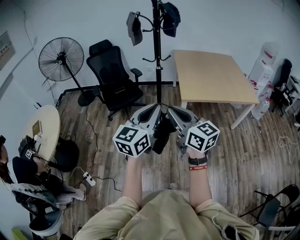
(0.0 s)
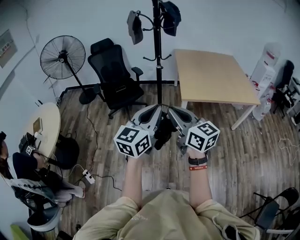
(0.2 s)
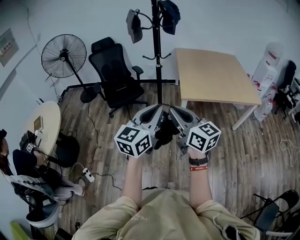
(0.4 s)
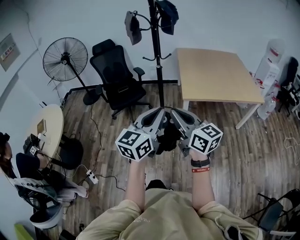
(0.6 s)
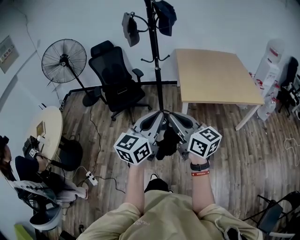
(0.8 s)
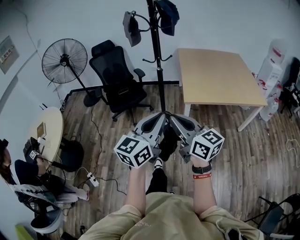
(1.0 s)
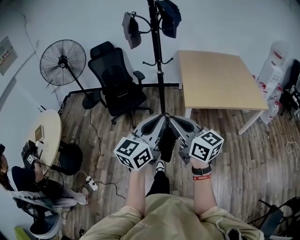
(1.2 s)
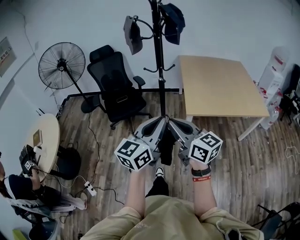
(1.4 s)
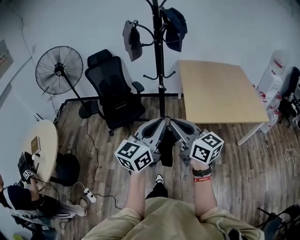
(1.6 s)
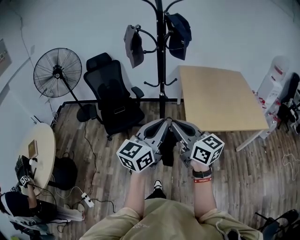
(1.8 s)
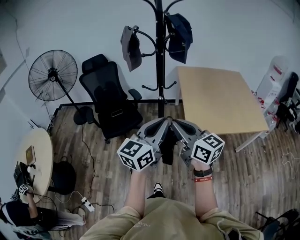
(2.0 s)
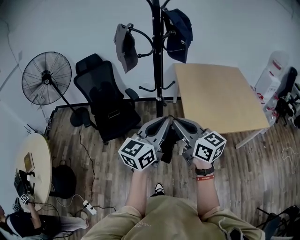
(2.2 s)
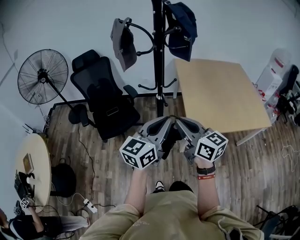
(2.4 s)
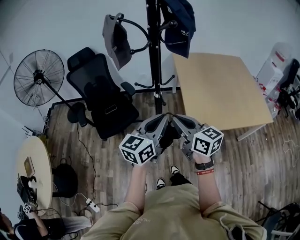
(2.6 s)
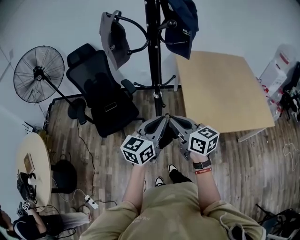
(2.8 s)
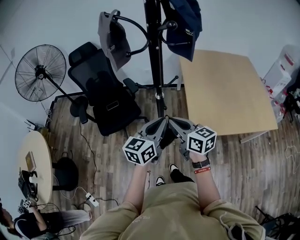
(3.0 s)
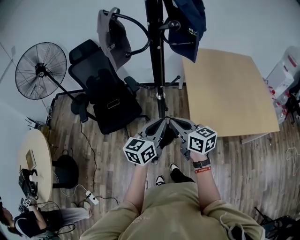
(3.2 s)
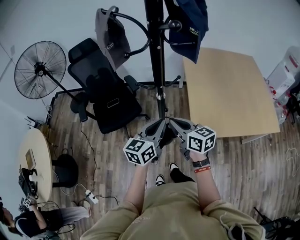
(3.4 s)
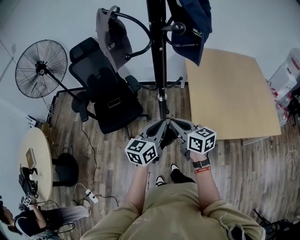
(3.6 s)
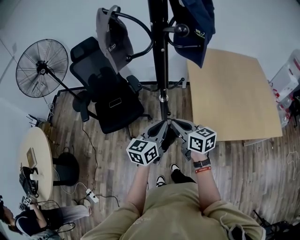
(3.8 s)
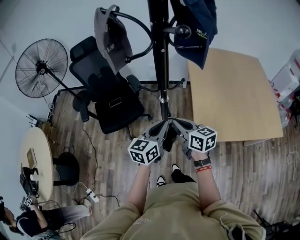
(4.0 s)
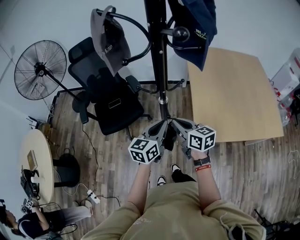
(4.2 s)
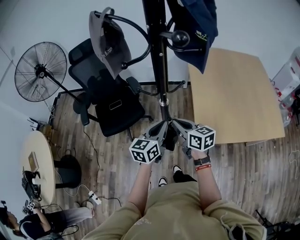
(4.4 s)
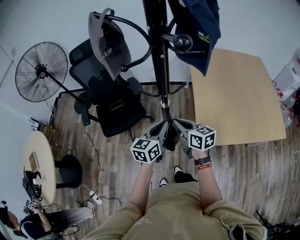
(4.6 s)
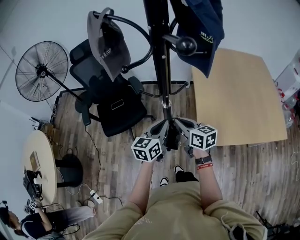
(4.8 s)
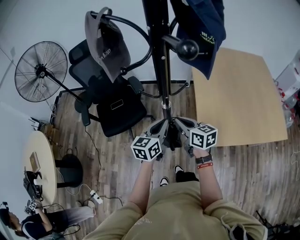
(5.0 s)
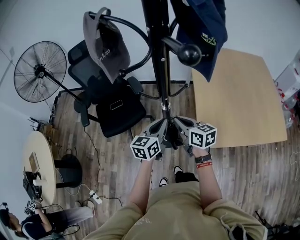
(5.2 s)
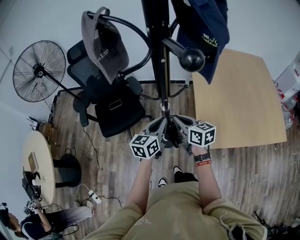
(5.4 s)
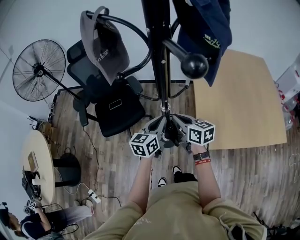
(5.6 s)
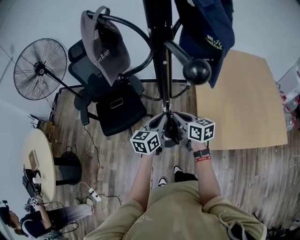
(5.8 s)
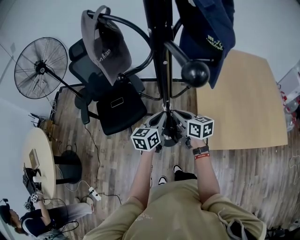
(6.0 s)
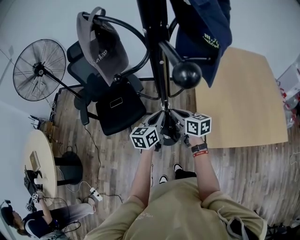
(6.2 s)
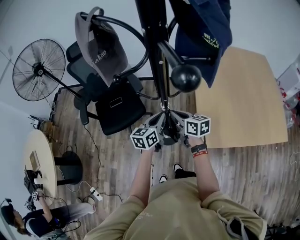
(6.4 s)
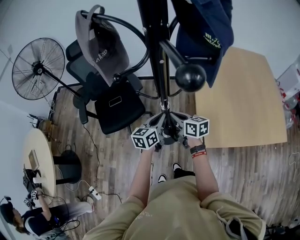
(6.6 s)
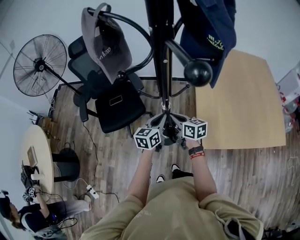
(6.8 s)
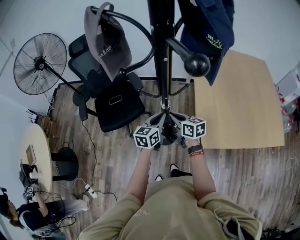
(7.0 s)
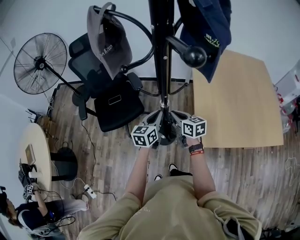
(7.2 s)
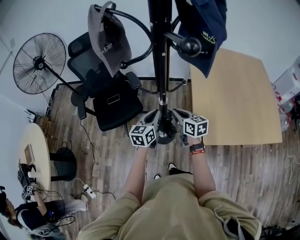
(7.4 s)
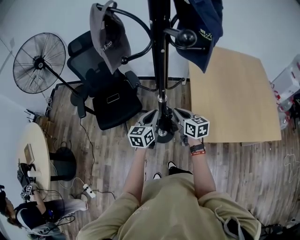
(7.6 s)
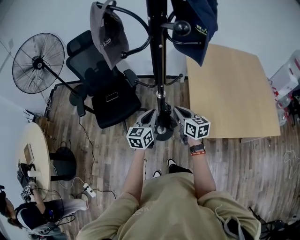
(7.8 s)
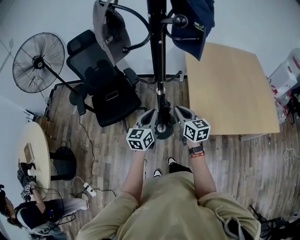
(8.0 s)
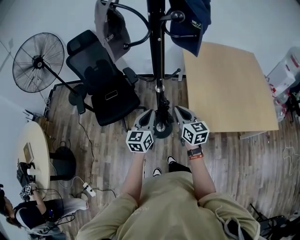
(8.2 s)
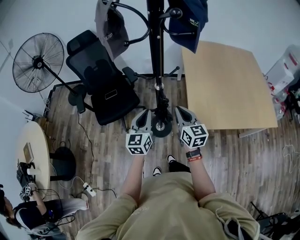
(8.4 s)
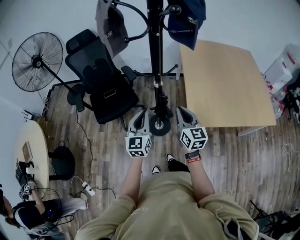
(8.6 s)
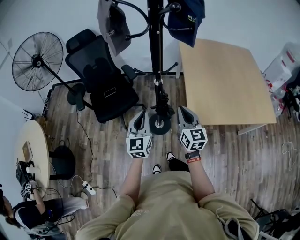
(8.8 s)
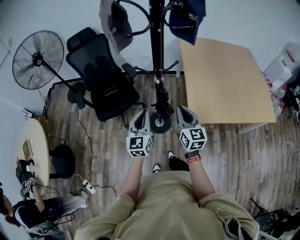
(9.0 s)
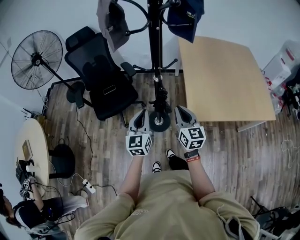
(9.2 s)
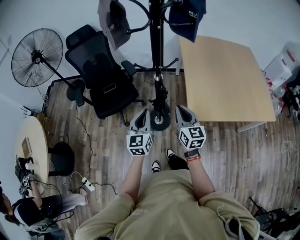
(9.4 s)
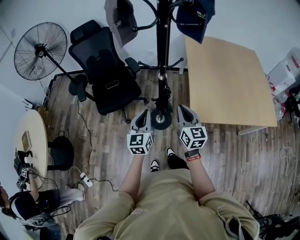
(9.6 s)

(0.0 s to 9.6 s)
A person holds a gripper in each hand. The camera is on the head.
0.0 s - 1.6 s: The two grippers go some 20 cm forward.
1.6 s - 3.2 s: Both grippers travel together forward, roughly 35 cm.
3.2 s - 4.8 s: Both grippers move forward and downward, approximately 15 cm.
4.8 s - 6.4 s: The right gripper shifts about 10 cm forward; the left gripper goes some 10 cm forward and downward.
6.4 s - 8.0 s: Both grippers travel together backward, about 10 cm. The right gripper swivels approximately 20 degrees.
8.0 s - 9.6 s: Both grippers move backward, about 10 cm.

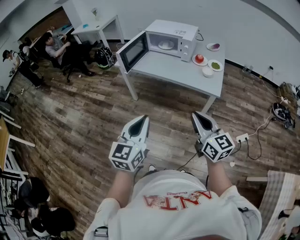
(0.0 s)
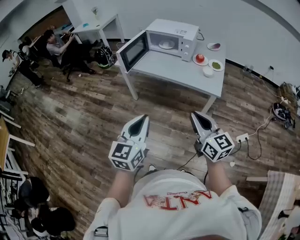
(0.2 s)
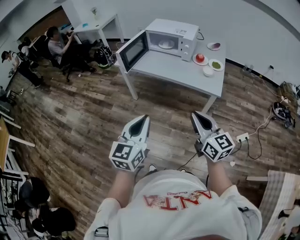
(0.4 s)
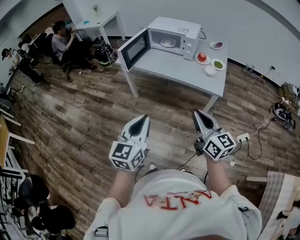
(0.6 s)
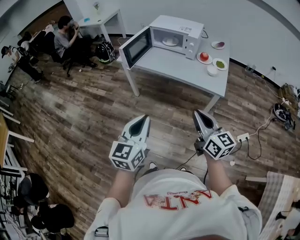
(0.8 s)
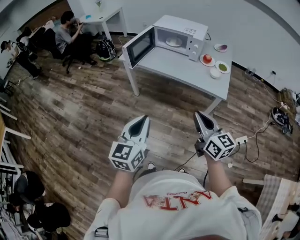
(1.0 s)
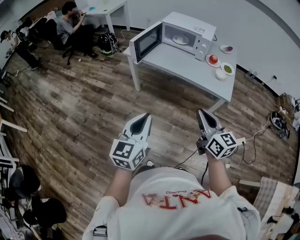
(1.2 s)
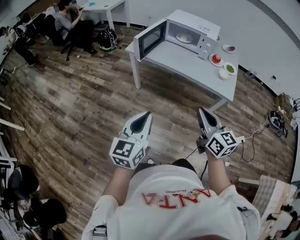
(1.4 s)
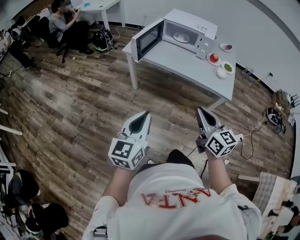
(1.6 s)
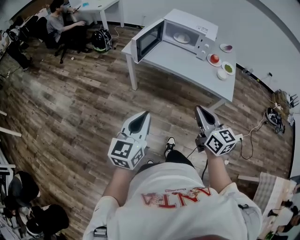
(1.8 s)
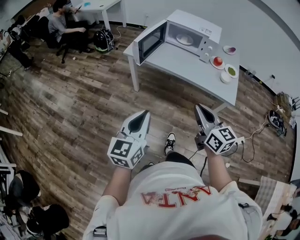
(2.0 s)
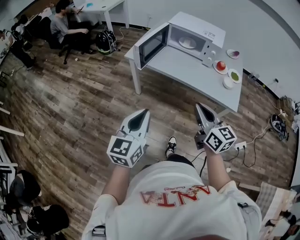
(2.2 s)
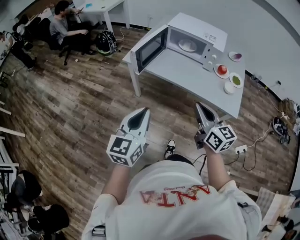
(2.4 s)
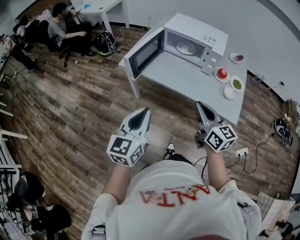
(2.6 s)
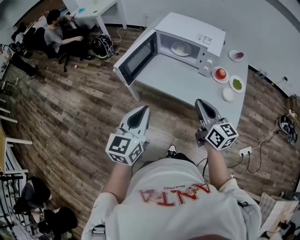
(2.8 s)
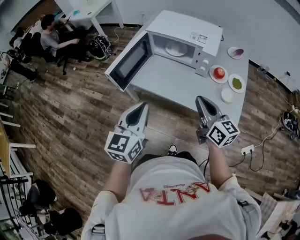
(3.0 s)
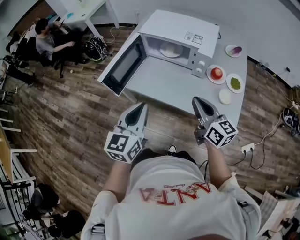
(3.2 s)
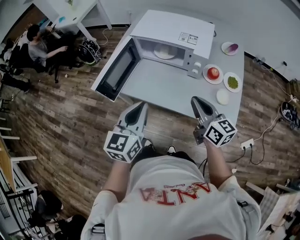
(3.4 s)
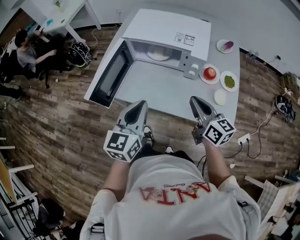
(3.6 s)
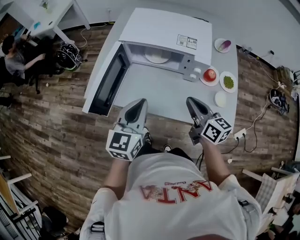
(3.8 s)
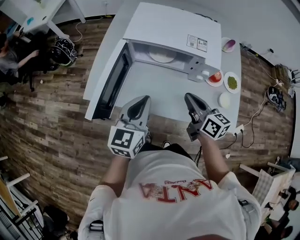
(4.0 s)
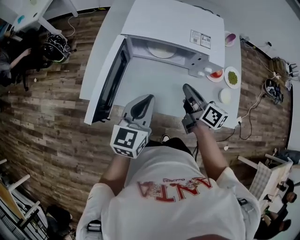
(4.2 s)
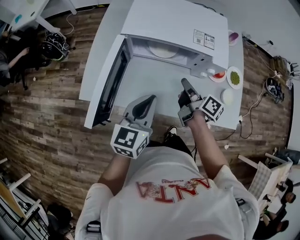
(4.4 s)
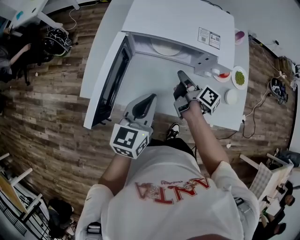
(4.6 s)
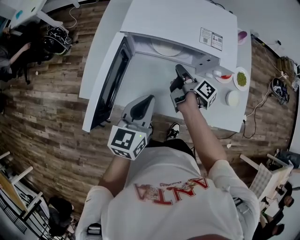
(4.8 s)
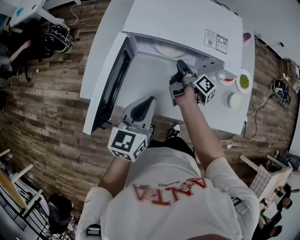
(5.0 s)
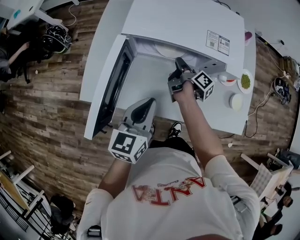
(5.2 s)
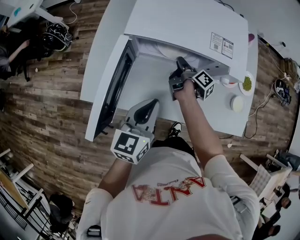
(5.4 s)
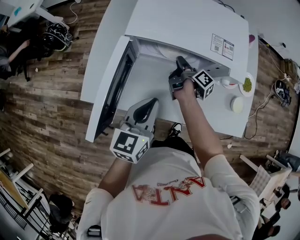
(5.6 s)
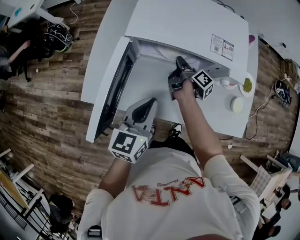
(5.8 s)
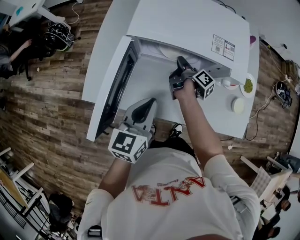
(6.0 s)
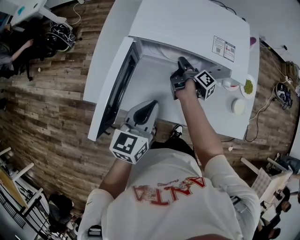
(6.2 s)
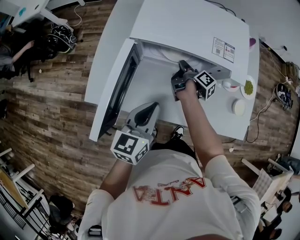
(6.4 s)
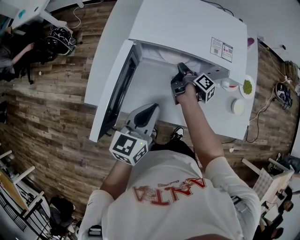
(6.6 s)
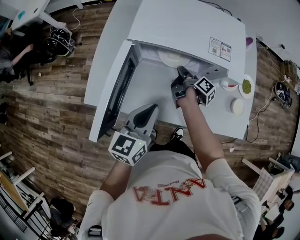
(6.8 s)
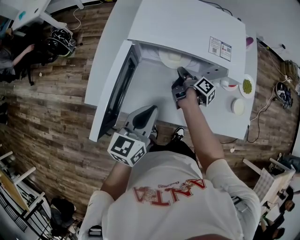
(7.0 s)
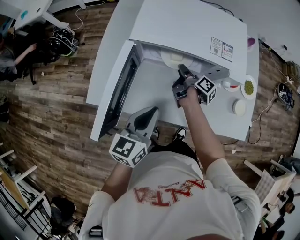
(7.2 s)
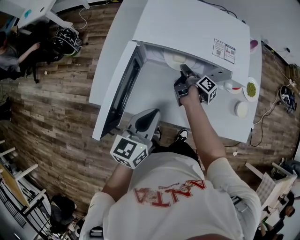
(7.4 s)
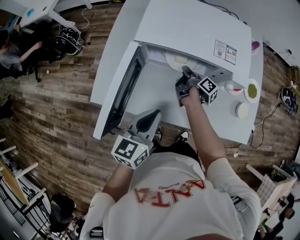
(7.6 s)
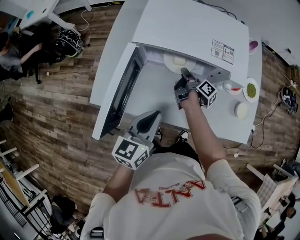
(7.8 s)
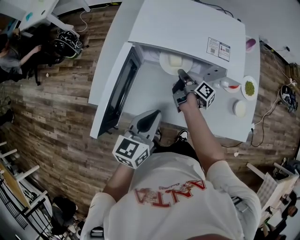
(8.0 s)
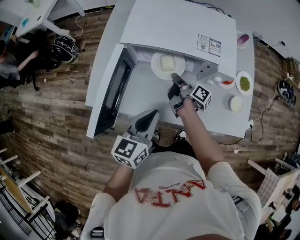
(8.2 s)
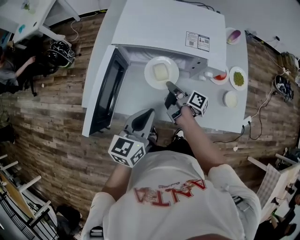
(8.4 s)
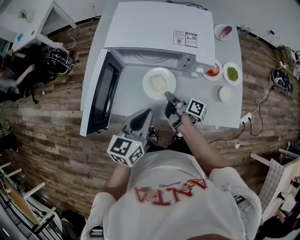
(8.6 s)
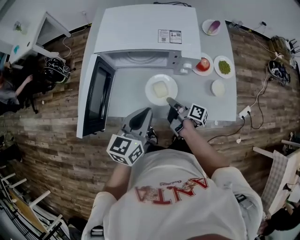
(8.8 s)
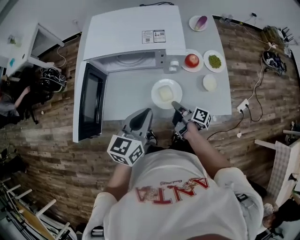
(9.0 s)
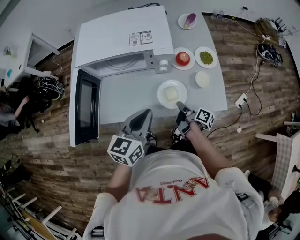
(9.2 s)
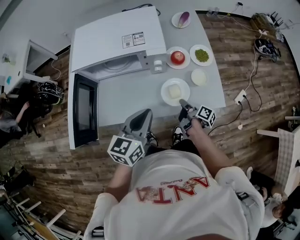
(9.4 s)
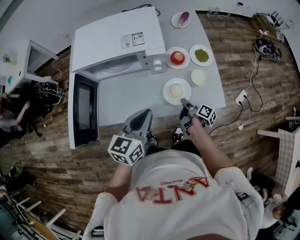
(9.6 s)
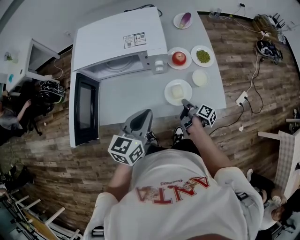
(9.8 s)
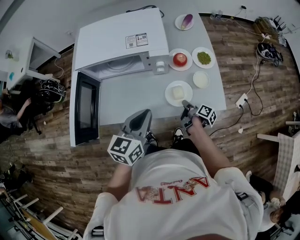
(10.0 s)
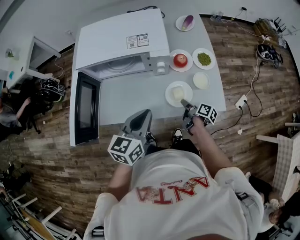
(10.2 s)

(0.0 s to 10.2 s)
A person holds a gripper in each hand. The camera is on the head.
0.0 s - 1.4 s: The left gripper goes about 10 cm to the left, while the right gripper travels to the left and forward by about 10 cm.
1.4 s - 3.0 s: Both grippers move forward, approximately 30 cm.
3.0 s - 4.4 s: Both grippers move forward and downward, approximately 25 cm. The left gripper turns by roughly 20 degrees, while the right gripper rotates around the line of its fingers by about 50 degrees, clockwise from behind.
4.4 s - 5.8 s: The left gripper shifts by roughly 5 cm. Meanwhile the right gripper heads forward, downward and to the left, covering roughly 15 cm, and turns by about 30 degrees.
5.8 s - 7.2 s: The grippers make only small movements.
7.2 s - 8.8 s: The right gripper travels backward and to the right by about 20 cm, and closes. Meanwhile the left gripper moves to the right, some 10 cm.
8.8 s - 10.2 s: The right gripper shifts roughly 15 cm to the right. Meanwhile the left gripper is displaced to the right by roughly 10 cm.

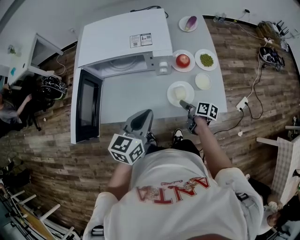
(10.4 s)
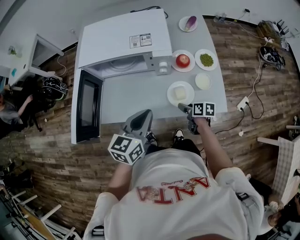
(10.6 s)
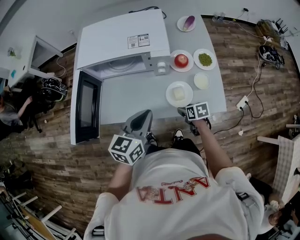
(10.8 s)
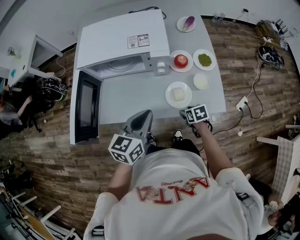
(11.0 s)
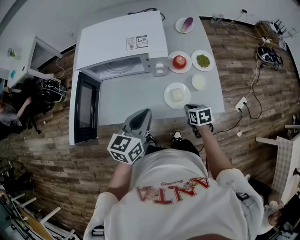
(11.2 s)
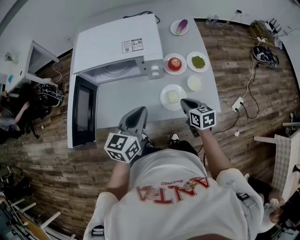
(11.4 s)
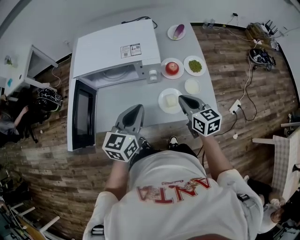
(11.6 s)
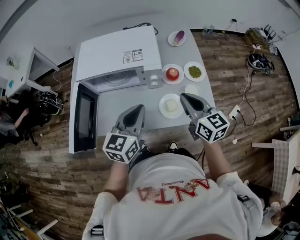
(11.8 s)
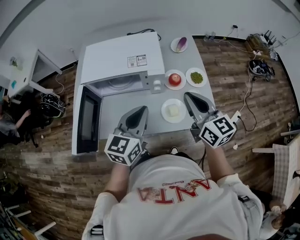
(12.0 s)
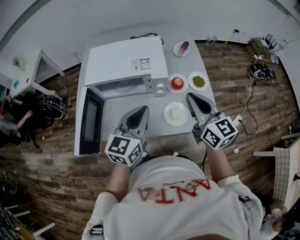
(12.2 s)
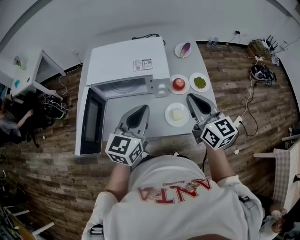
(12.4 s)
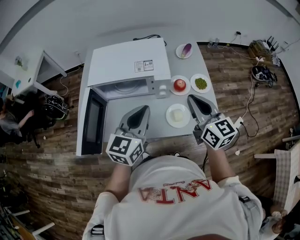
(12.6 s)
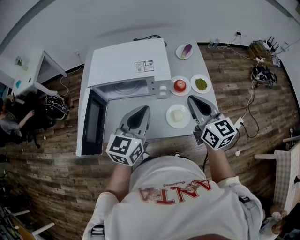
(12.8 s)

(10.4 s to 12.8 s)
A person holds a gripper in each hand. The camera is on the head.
10.4 s - 11.6 s: The right gripper heads upward, covering approximately 20 cm, rolls counterclockwise, seen from behind, by approximately 50 degrees, and closes up.
11.6 s - 12.8 s: The left gripper shifts some 5 cm upward; the right gripper moves upward, roughly 15 cm.

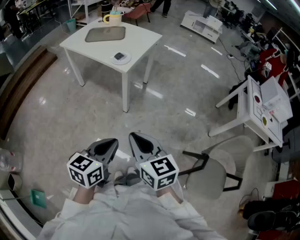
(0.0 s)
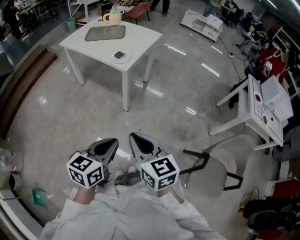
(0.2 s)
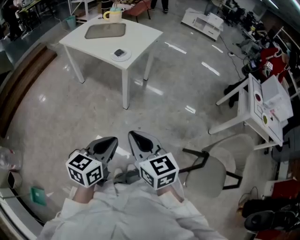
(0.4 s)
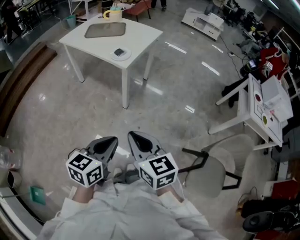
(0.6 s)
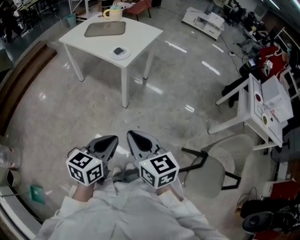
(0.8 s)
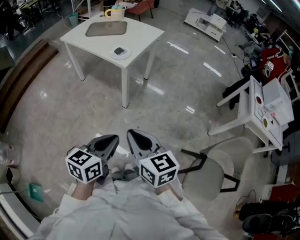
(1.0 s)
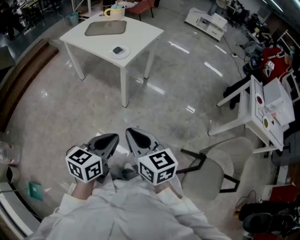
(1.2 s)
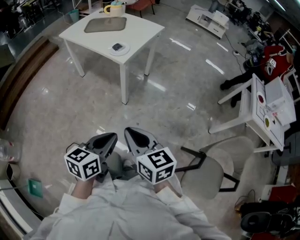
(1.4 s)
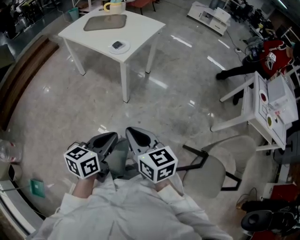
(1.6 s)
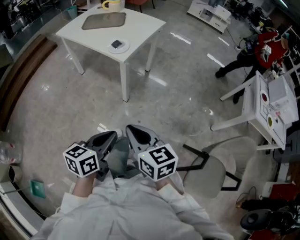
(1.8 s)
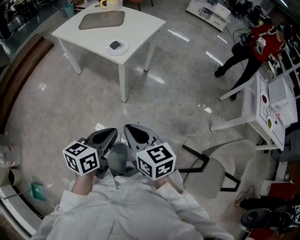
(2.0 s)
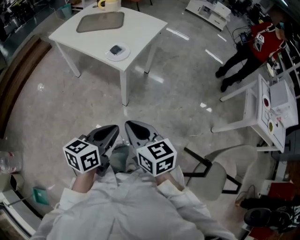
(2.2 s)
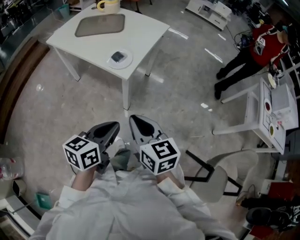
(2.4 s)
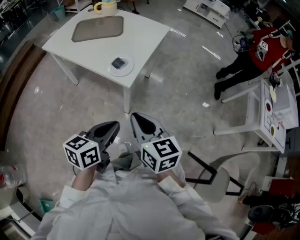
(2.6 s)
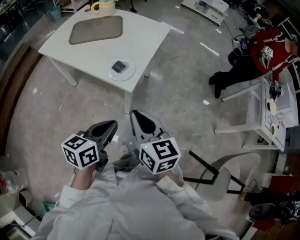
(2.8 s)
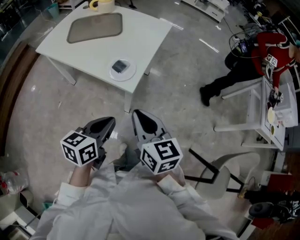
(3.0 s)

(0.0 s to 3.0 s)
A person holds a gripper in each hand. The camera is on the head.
0.0 s - 1.6 s: The right gripper shifts by about 5 cm. The left gripper ends up about 5 cm from where it was.
1.6 s - 3.0 s: The left gripper goes roughly 35 cm forward and to the left. Meanwhile the right gripper heads forward, covering roughly 30 cm.
